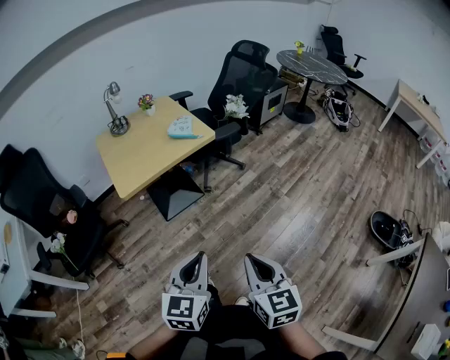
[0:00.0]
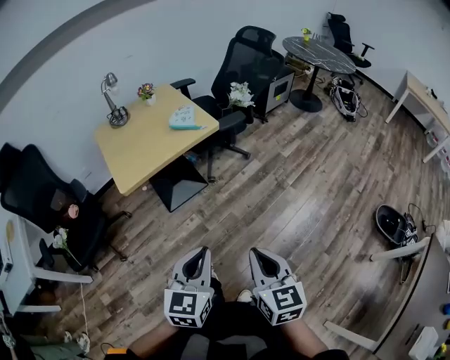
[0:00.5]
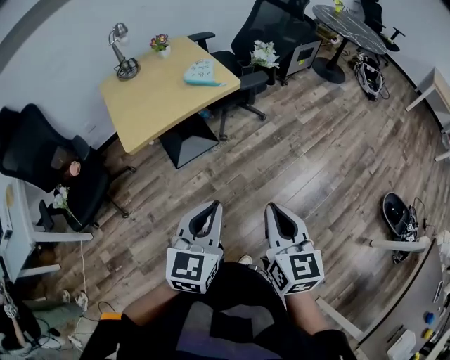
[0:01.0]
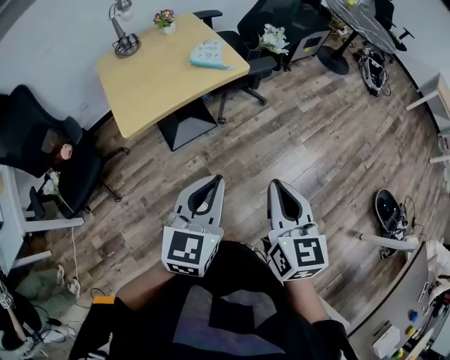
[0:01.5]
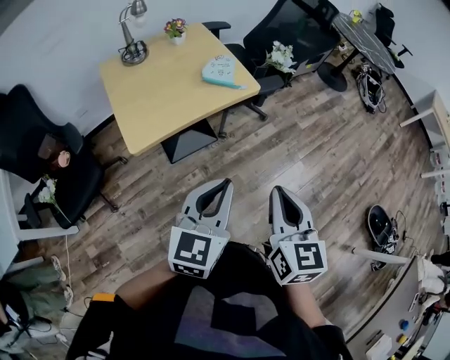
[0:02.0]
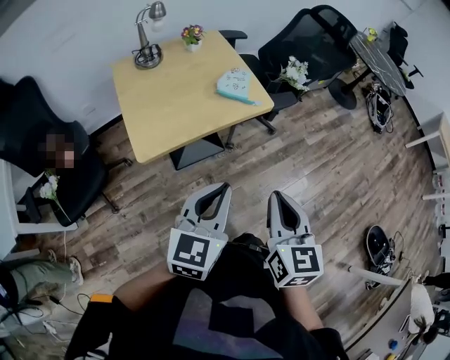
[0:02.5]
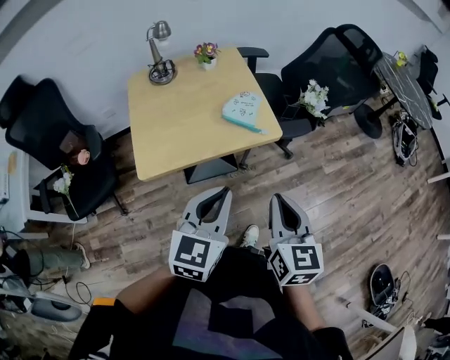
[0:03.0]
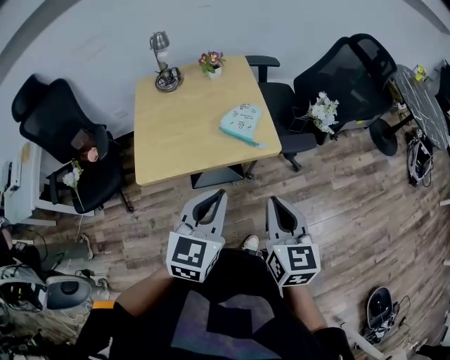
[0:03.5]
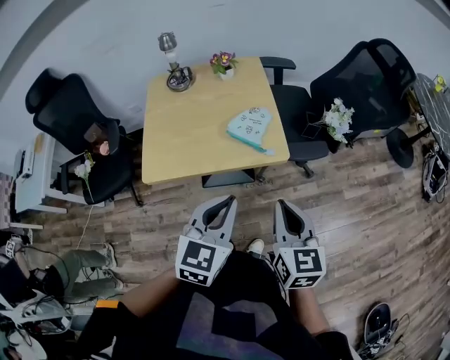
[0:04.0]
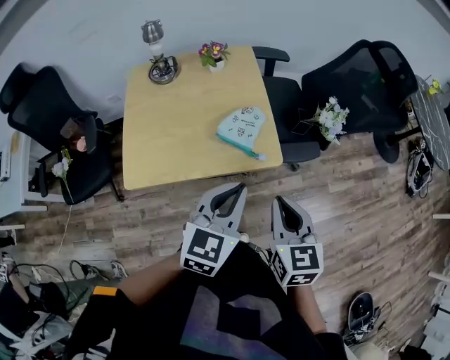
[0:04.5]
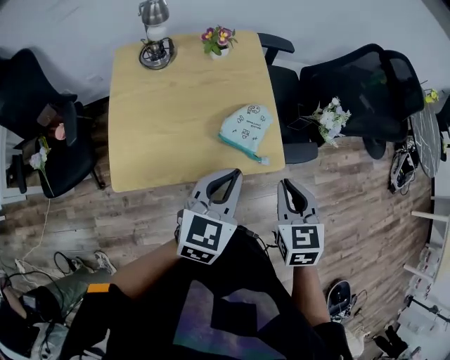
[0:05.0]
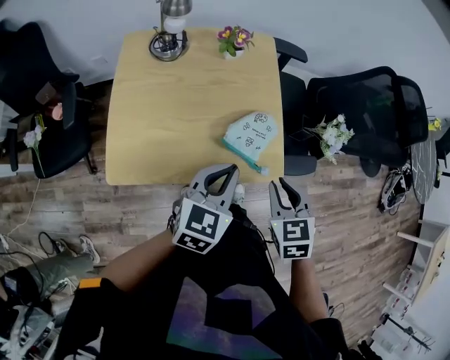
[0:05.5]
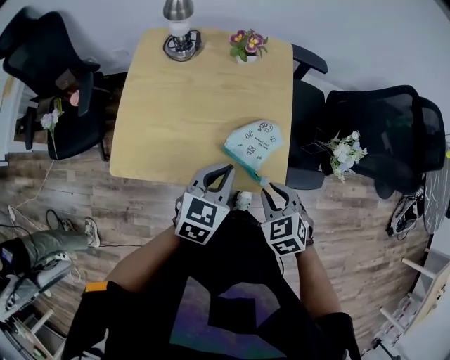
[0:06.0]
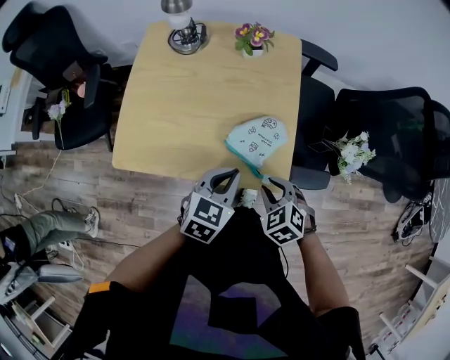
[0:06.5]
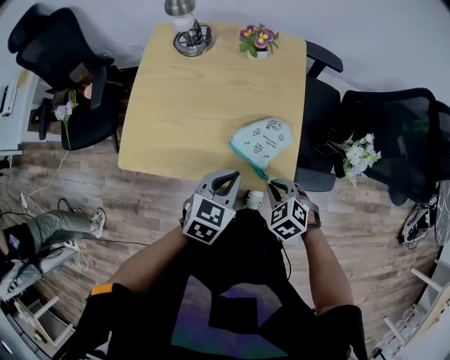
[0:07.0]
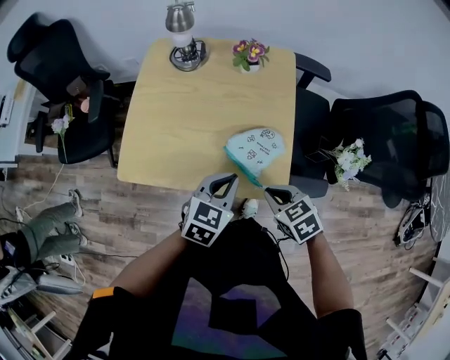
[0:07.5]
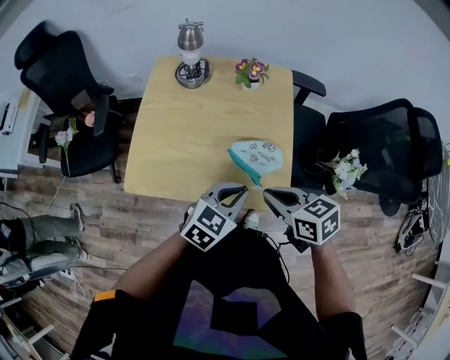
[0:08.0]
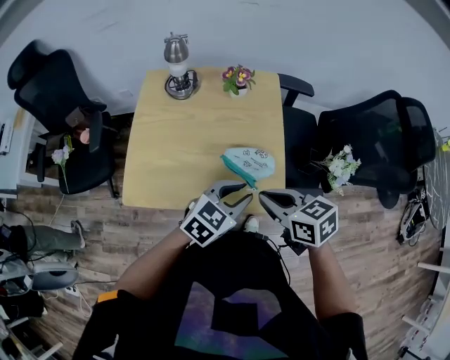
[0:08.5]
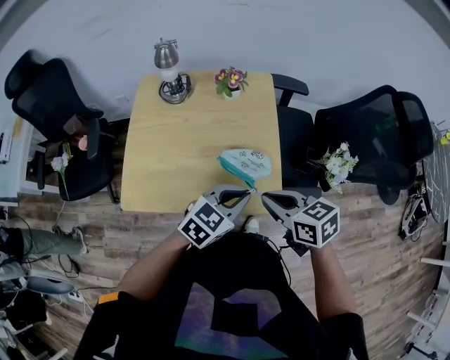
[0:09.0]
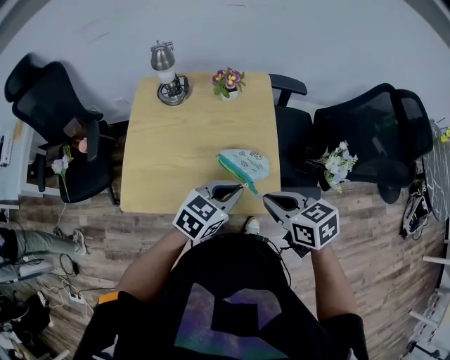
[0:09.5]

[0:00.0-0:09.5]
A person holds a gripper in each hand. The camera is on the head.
0:00.0 to 0:02.0: The left gripper shifts roughly 20 cm forward; the right gripper moves forward and to the left, some 25 cm.
0:02.0 to 0:04.0: The left gripper shifts by approximately 25 cm, and swivels approximately 30 degrees; the right gripper shifts by approximately 30 cm, and rotates some 30 degrees.
0:04.0 to 0:05.5: The grippers both shift forward and downward by some 20 cm. The right gripper turns by some 40 degrees.
0:05.5 to 0:07.5: Both grippers travel together downward, roughly 5 cm. The right gripper turns by about 40 degrees.
0:07.5 to 0:09.5: The right gripper heads upward, covering about 10 cm, and turns by roughly 20 degrees. The left gripper moves roughly 5 cm, swivels some 20 degrees, and opens and closes again.

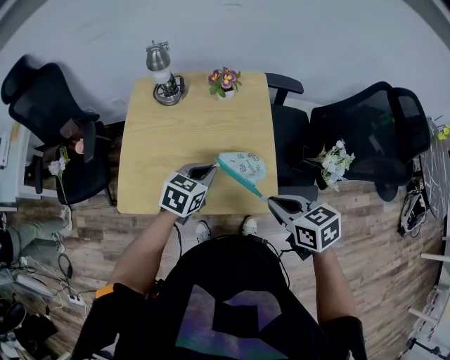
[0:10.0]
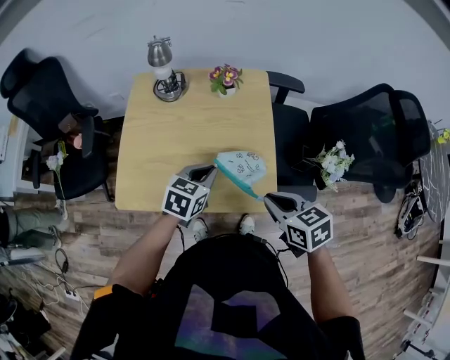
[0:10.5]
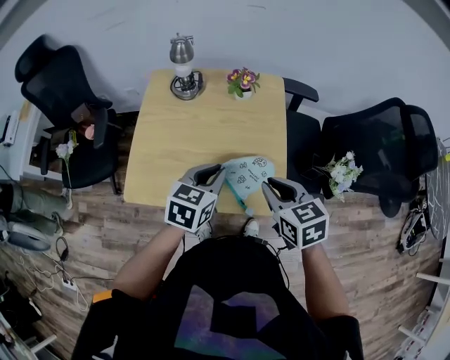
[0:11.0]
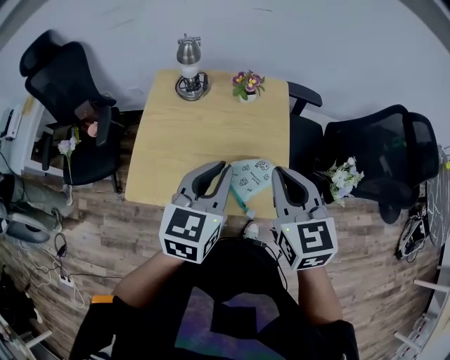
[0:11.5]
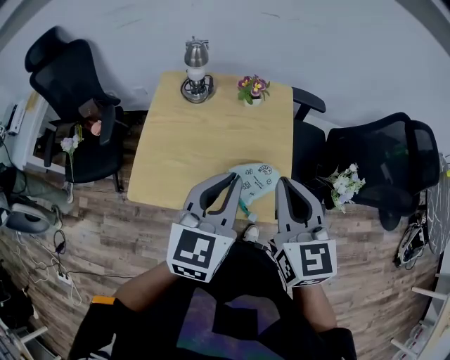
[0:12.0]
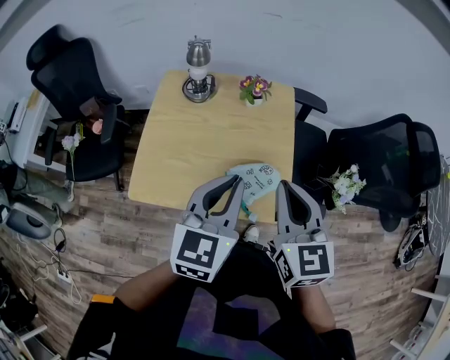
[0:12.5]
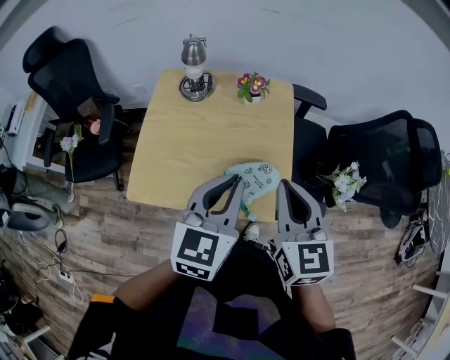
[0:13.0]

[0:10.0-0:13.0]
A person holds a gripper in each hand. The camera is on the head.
0:10.0 to 0:11.5: The left gripper goes some 20 cm upward, and turns by roughly 30 degrees. Meanwhile the right gripper travels upward and forward by roughly 15 cm, and rotates some 30 degrees.
0:11.5 to 0:13.0: The grippers move only a little.

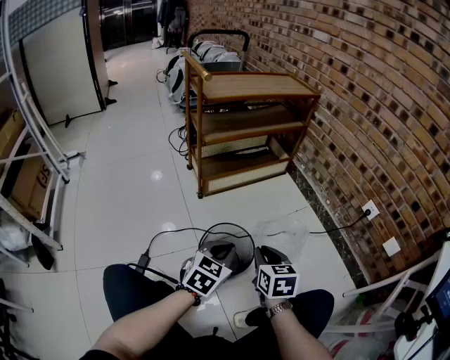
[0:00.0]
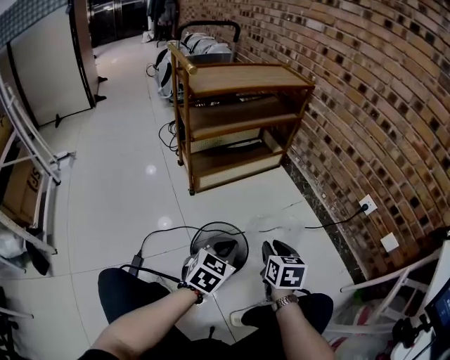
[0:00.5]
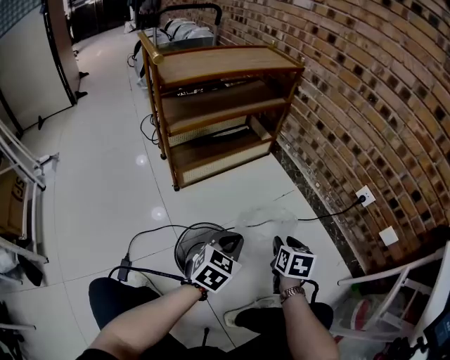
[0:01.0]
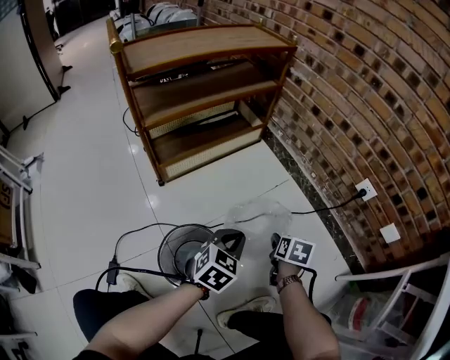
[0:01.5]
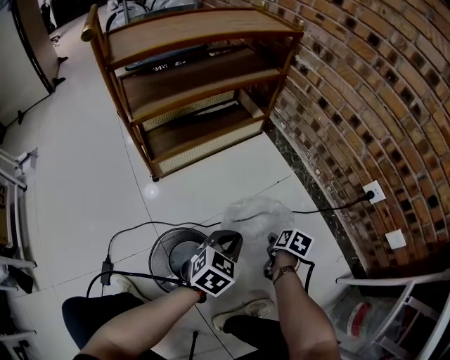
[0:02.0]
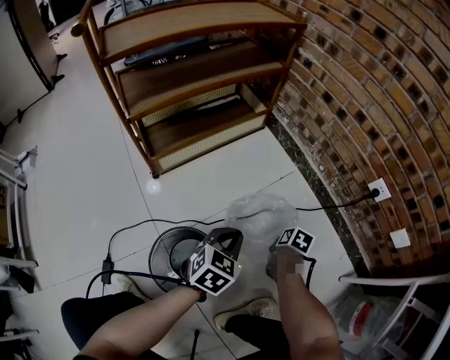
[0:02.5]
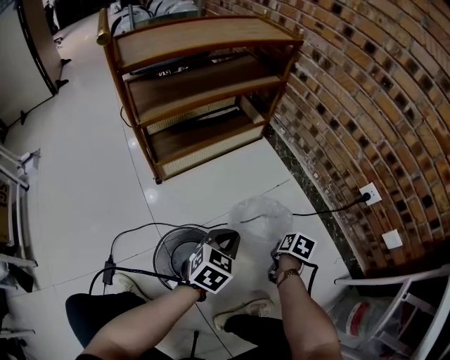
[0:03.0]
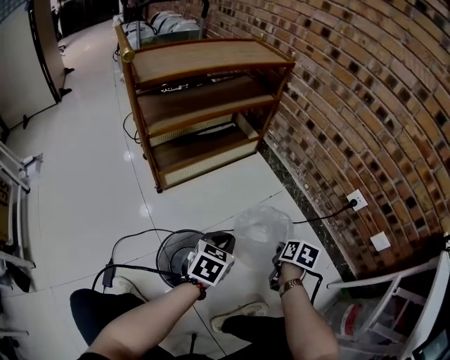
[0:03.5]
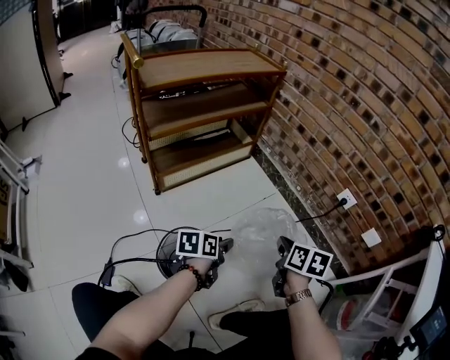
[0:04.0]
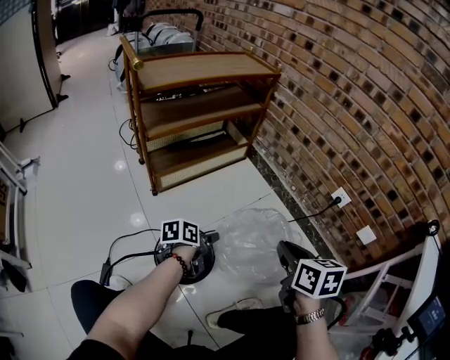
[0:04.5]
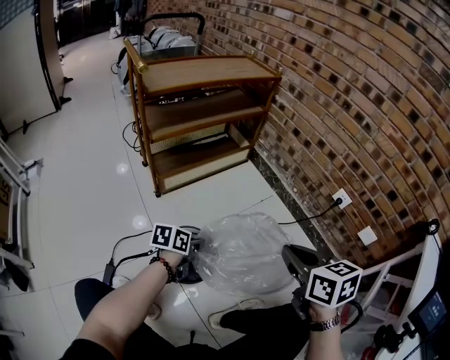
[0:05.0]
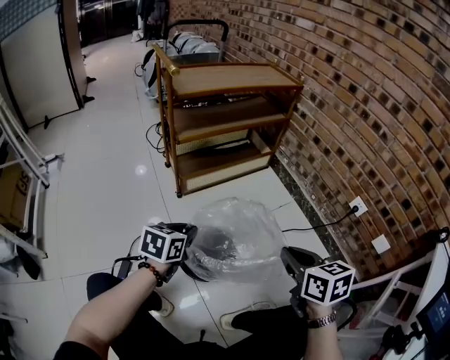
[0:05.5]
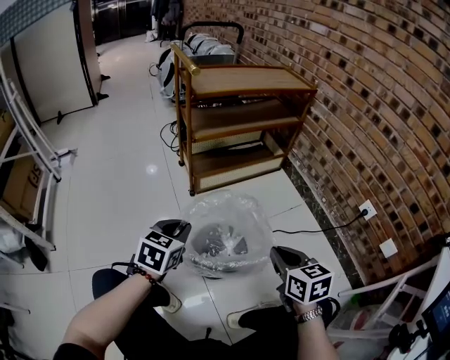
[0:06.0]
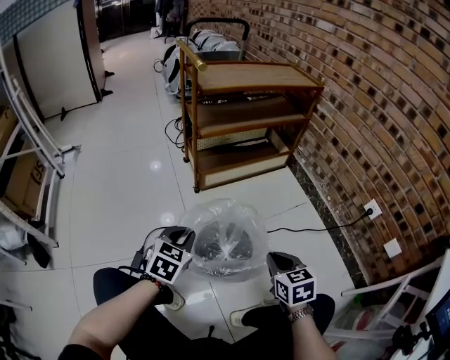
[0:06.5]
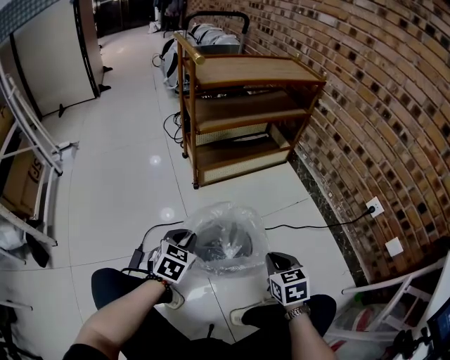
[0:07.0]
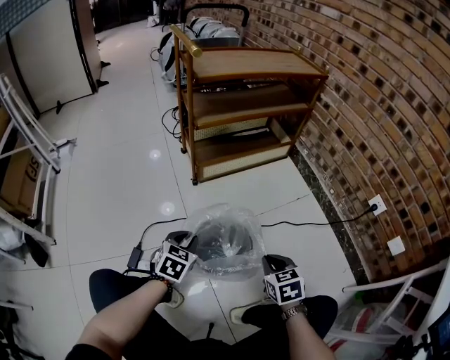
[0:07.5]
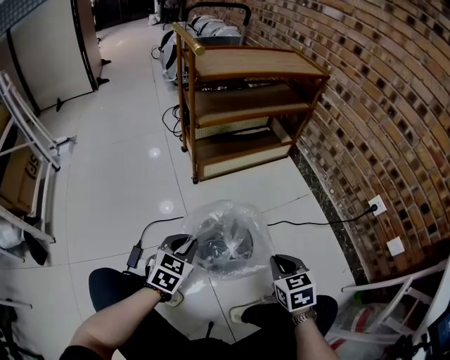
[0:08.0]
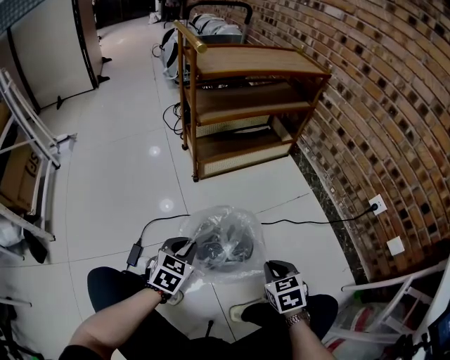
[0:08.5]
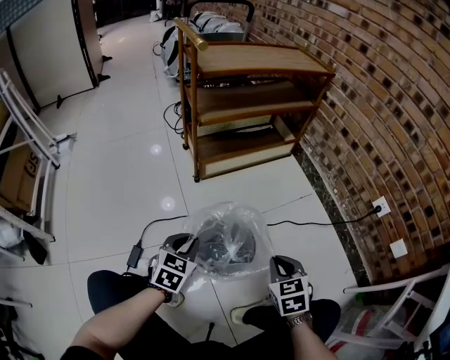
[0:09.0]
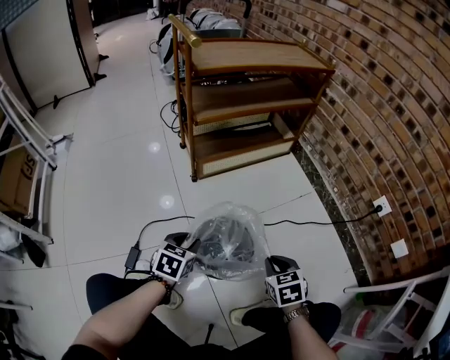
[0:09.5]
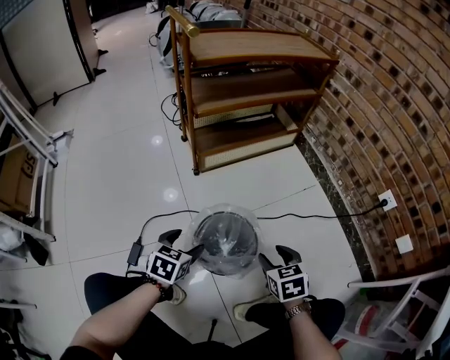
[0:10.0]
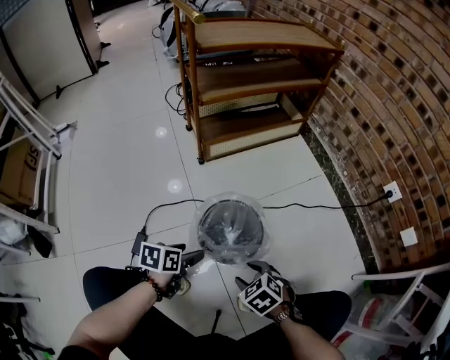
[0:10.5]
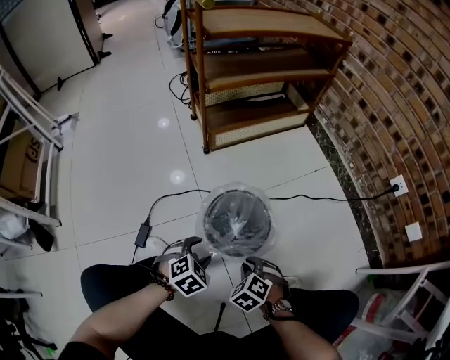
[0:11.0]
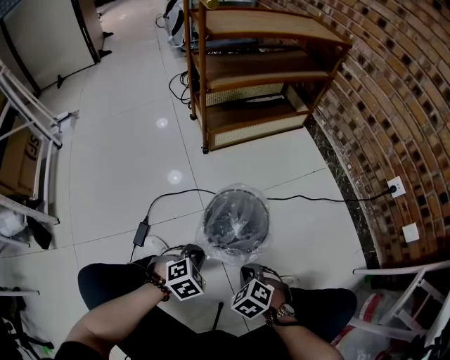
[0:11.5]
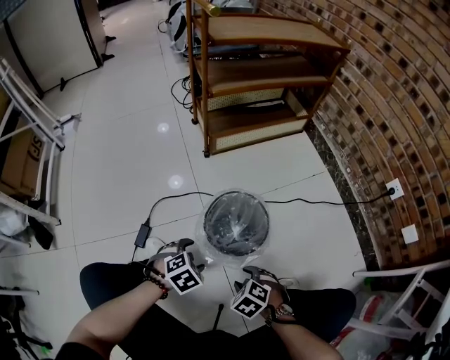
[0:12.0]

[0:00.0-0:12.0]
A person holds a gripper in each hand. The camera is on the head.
0:00.0 to 0:02.0: The left gripper moves forward, downward and to the right, some 25 cm, while the right gripper heads downward, forward and to the right, covering about 35 cm, points its fingers about 30 degrees further downward, and opens.
0:02.0 to 0:04.0: The left gripper moves about 5 cm, rolls counterclockwise, seen from behind, by roughly 50 degrees, and opens its fingers; the right gripper moves upward, approximately 20 cm, turns by about 30 degrees, and closes its fingers.
0:04.0 to 0:06.0: The right gripper moves approximately 20 cm, and rotates some 40 degrees. The left gripper shifts by roughly 25 cm, and swivels some 40 degrees.
0:06.0 to 0:08.0: Both grippers move downward, about 10 cm.
0:08.0 to 0:10.0: Both grippers move downward, roughly 5 cm. The left gripper opens up, while the right gripper opens.
0:10.0 to 0:12.0: The right gripper shifts about 20 cm backward, downward and to the left, rotates roughly 50 degrees, and closes, then reopens. Meanwhile the left gripper goes roughly 15 cm backward and downward, rotates about 40 degrees, and closes and opens again.

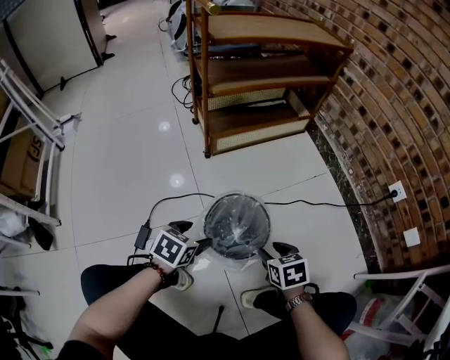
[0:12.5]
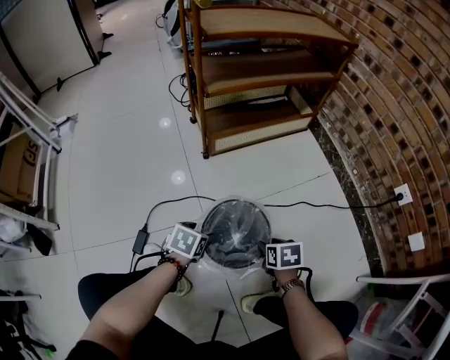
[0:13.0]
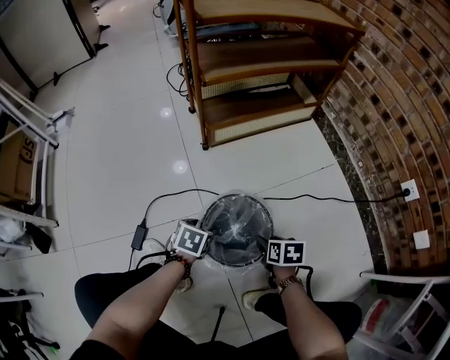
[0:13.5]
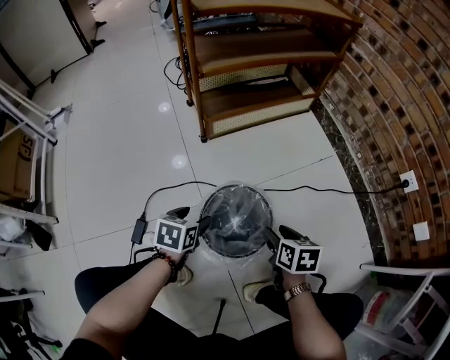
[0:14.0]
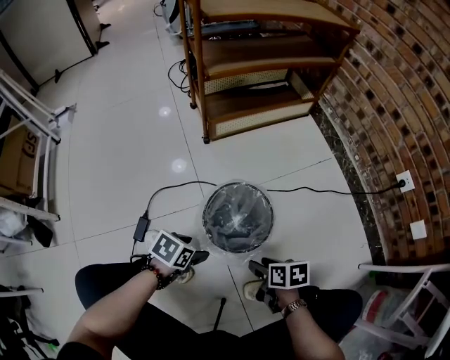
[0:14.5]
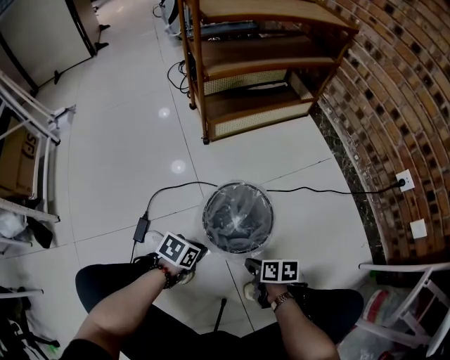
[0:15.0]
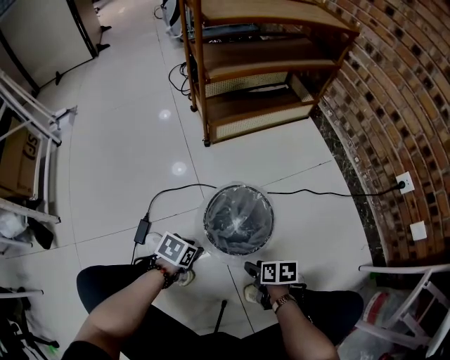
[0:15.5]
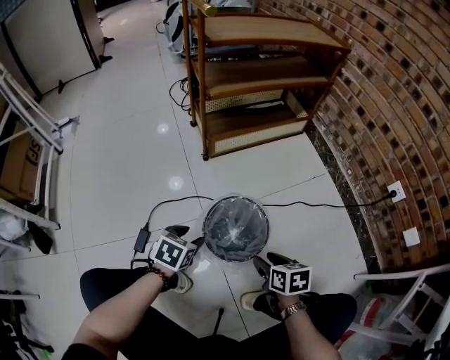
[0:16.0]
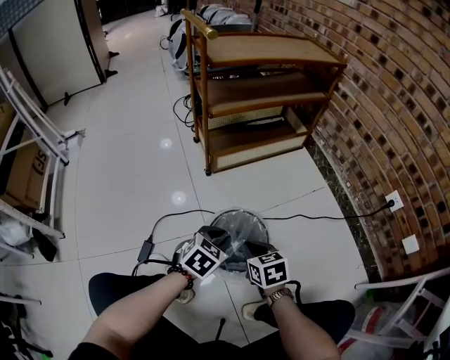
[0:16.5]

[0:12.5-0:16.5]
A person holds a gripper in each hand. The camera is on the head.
0:12.5 to 0:14.5: The right gripper moves up and down over about 10 cm, changing direction 2 times, and swivels roughly 30 degrees, while the left gripper changes place by approximately 10 cm.
0:14.5 to 0:16.5: The right gripper ends up about 15 cm from where it was, turns by approximately 30 degrees, and closes its fingers. Meanwhile the left gripper changes place by some 15 cm, turns by roughly 30 degrees, and closes.
